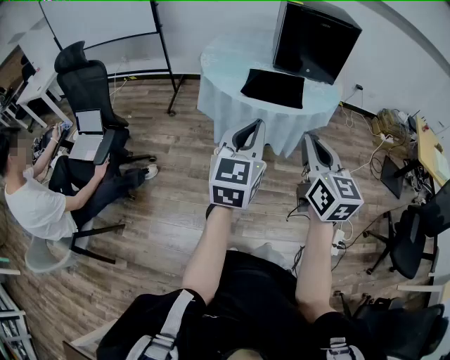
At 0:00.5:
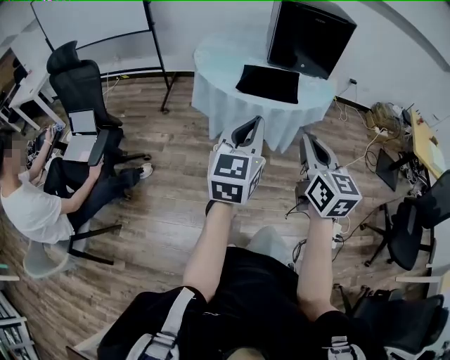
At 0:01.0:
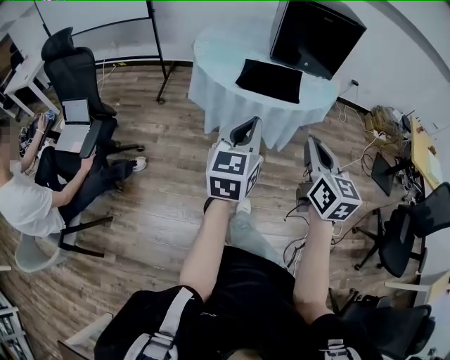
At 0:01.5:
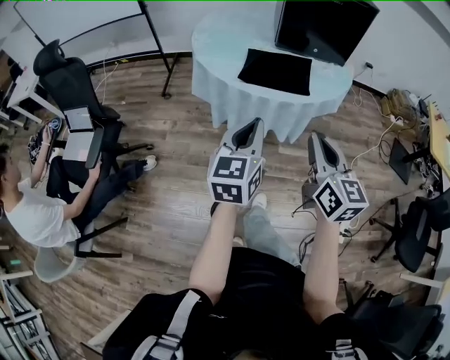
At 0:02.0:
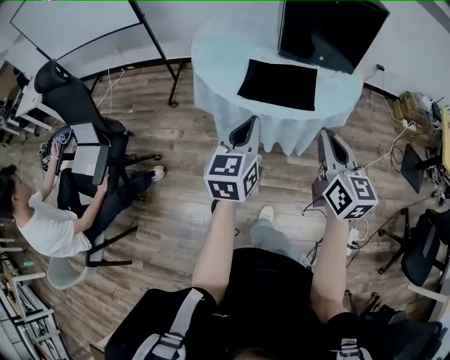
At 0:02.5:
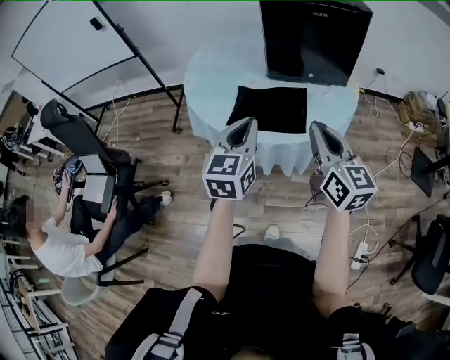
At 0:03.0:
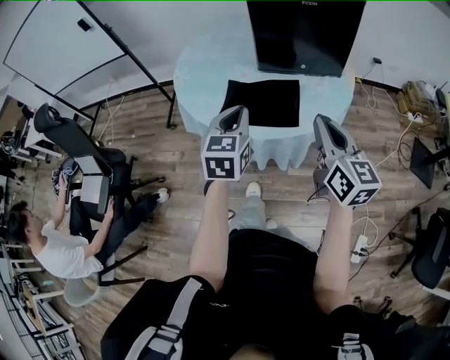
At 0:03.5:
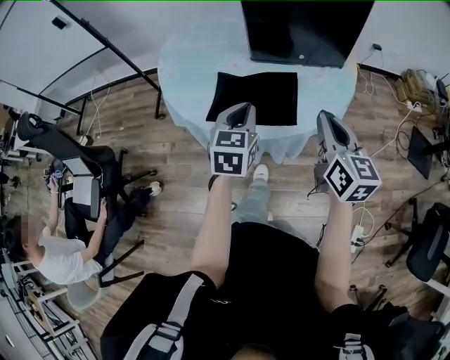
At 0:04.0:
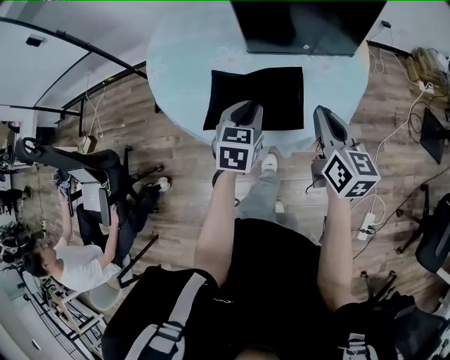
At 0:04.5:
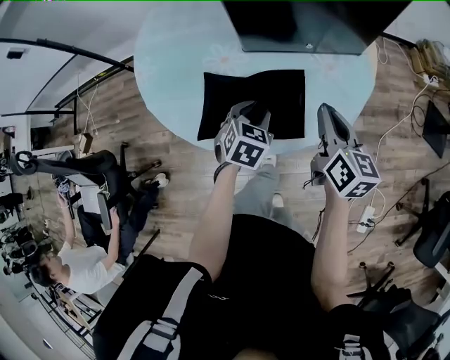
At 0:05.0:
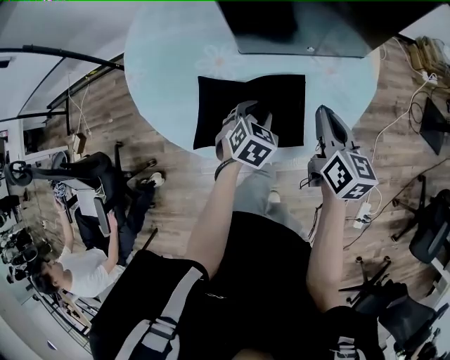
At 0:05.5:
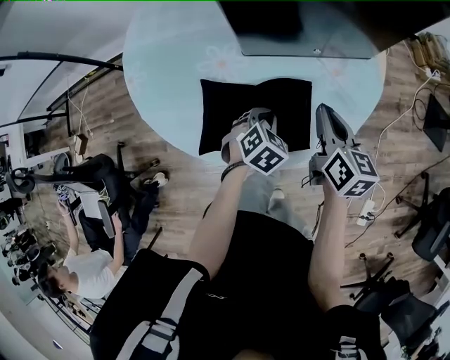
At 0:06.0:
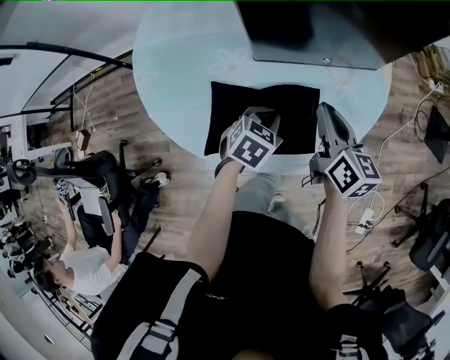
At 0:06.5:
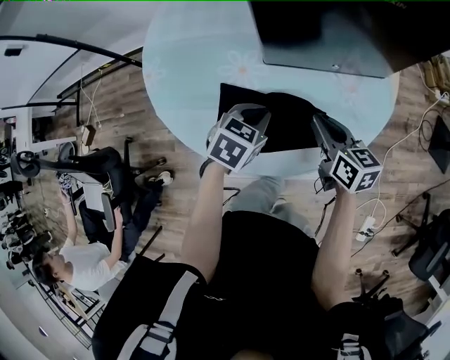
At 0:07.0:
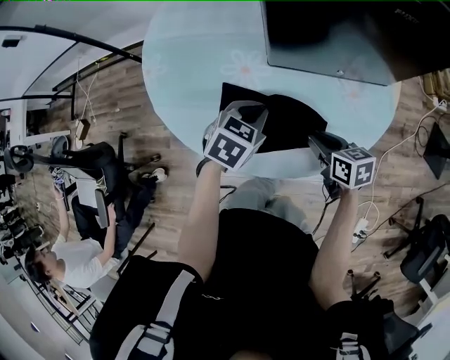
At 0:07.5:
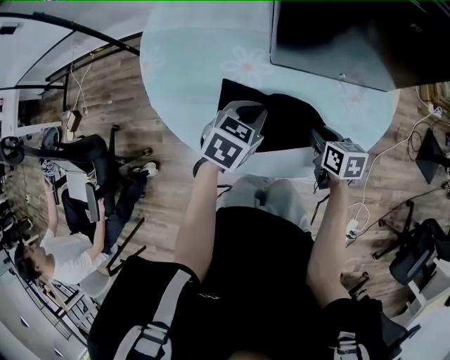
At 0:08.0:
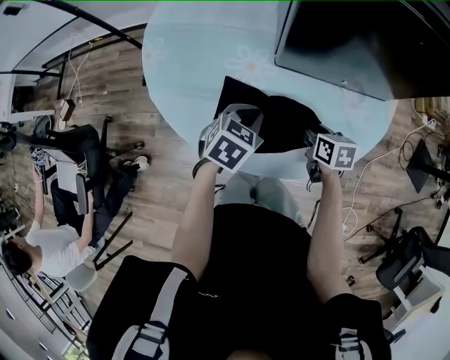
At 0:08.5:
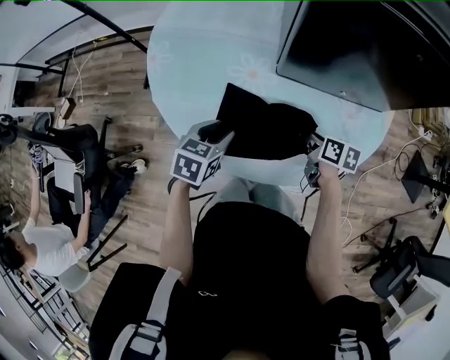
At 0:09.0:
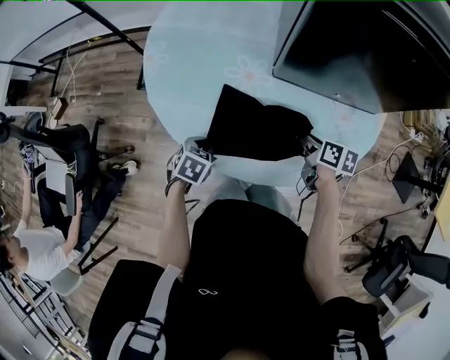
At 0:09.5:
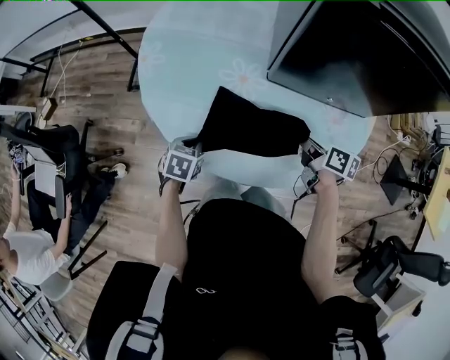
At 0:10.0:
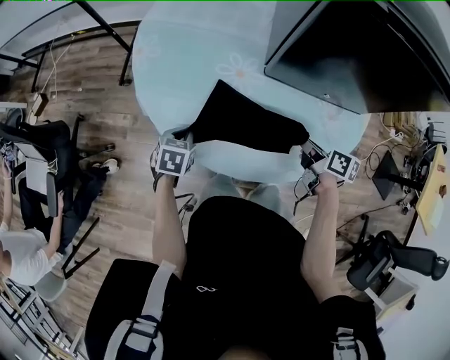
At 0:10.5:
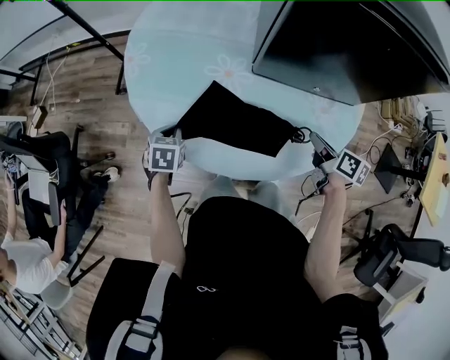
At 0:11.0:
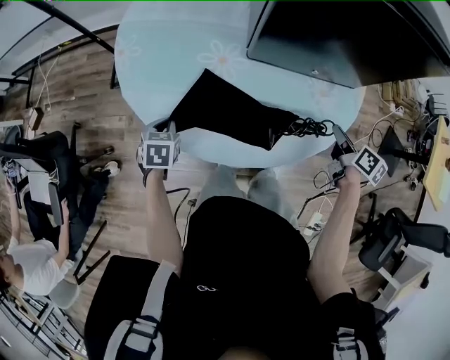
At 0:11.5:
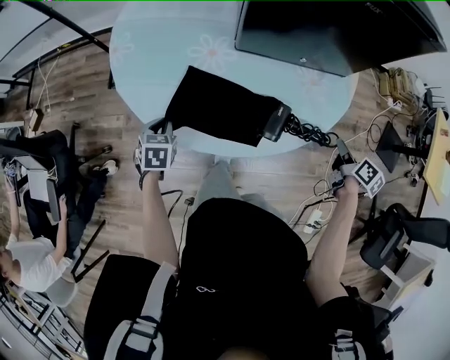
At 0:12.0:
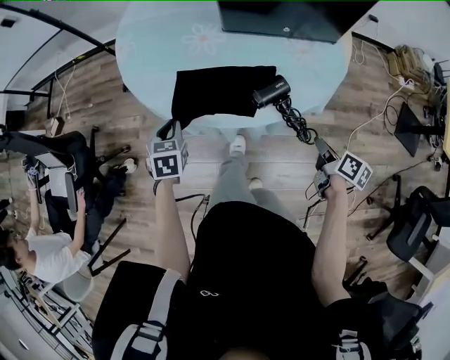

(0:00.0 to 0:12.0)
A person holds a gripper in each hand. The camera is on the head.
0:00.0 - 0:02.0: The right gripper is displaced forward by some 20 cm, while the left gripper is displaced forward and downward by roughly 25 cm.
0:02.0 - 0:04.0: The left gripper heads forward, downward and to the right, covering roughly 30 cm, and turns by about 30 degrees. Meanwhile the right gripper is displaced forward and downward by some 25 cm.
0:04.0 - 0:06.0: The left gripper travels downward and forward by roughly 10 cm, and rotates about 30 degrees; the right gripper shifts some 10 cm forward and downward.
0:06.0 - 0:08.0: The left gripper travels to the left by roughly 10 cm. The right gripper goes approximately 15 cm downward, tips its fingers downward by approximately 30 degrees, and opens.
0:08.0 - 0:10.0: The right gripper is displaced upward by about 5 cm, rotates about 20 degrees, and closes; the left gripper shifts about 20 cm to the left and downward, rotates some 20 degrees, and opens and closes again.
0:10.0 - 0:12.0: The left gripper heads backward and upward, covering approximately 15 cm; the right gripper is displaced backward and to the right by approximately 25 cm, and rotates approximately 20 degrees.

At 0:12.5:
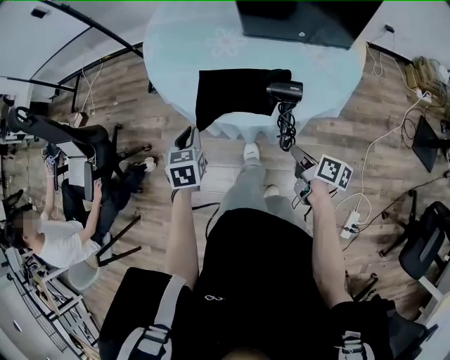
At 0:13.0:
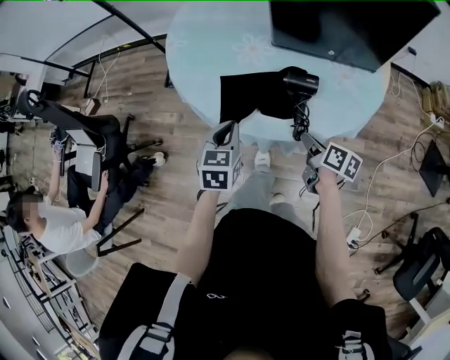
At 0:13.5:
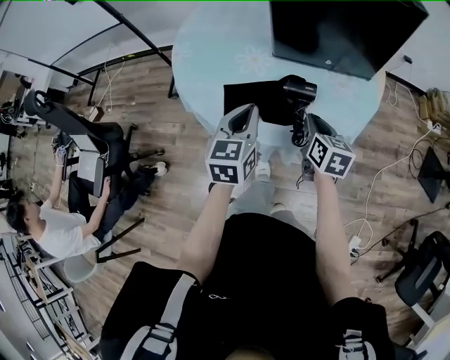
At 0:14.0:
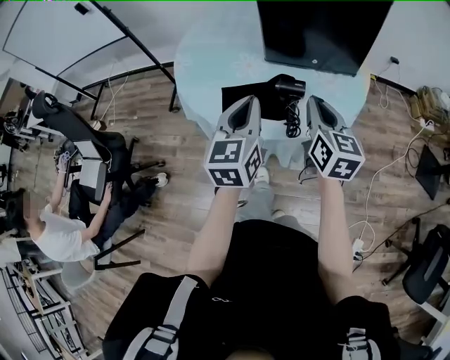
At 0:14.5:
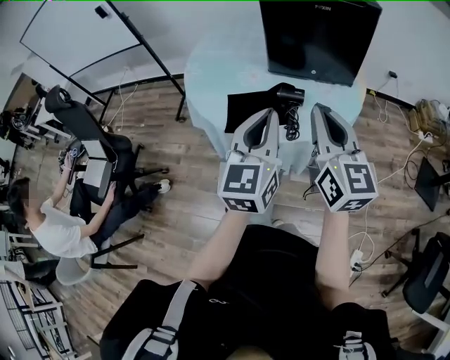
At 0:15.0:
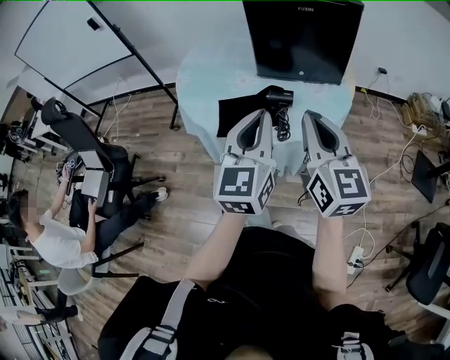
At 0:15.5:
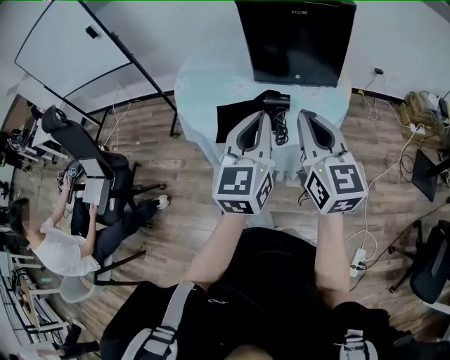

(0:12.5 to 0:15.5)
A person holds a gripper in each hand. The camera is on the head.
0:12.5 - 0:14.0: The right gripper goes about 25 cm upward and forward, and rotates around the line of its fingers by roughly 50 degrees, counterclockwise from behind. Meanwhile the left gripper is displaced upward and to the right by some 25 cm, and angles its fingers upward, by roughly 40 degrees.
0:14.0 - 0:15.5: The right gripper shifts roughly 15 cm backward and upward; the left gripper shifts approximately 15 cm backward, upward and to the right.

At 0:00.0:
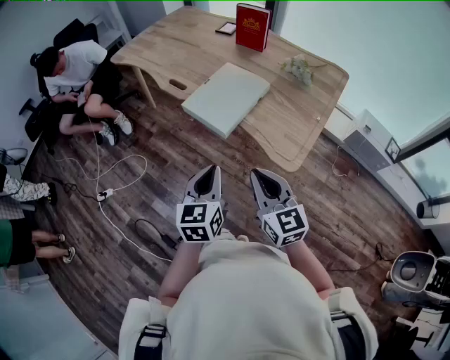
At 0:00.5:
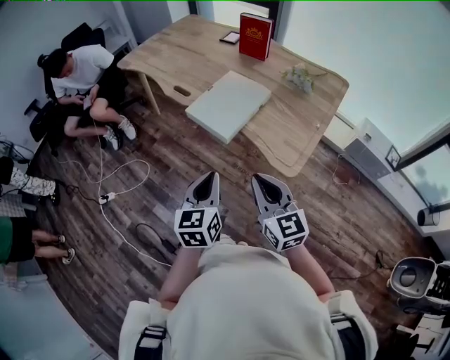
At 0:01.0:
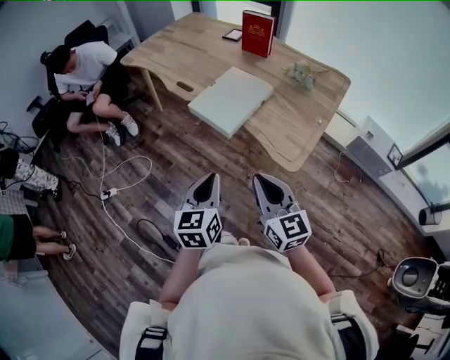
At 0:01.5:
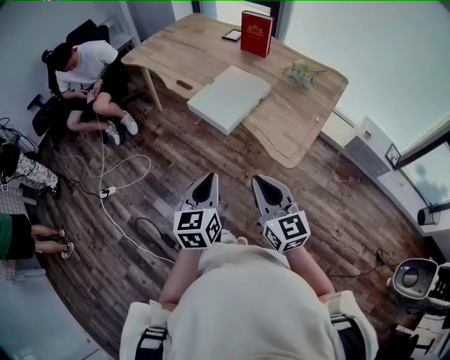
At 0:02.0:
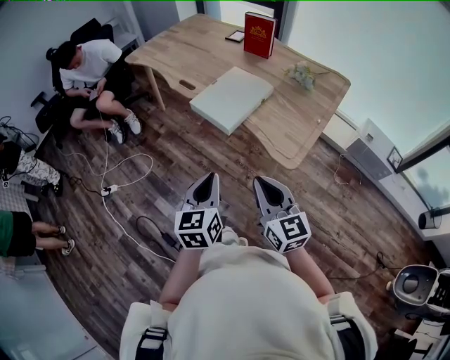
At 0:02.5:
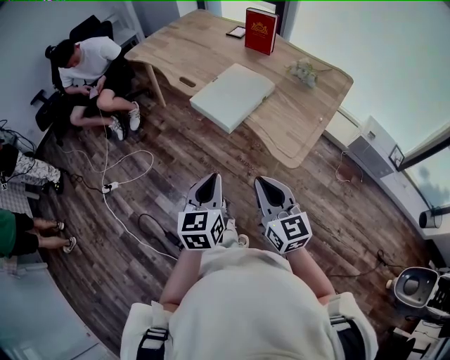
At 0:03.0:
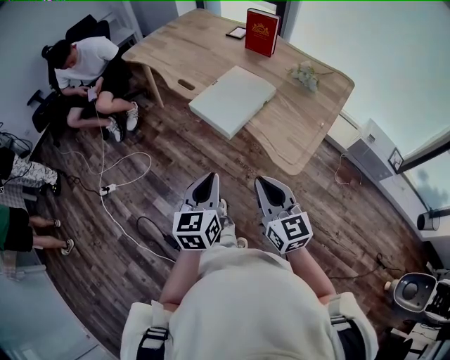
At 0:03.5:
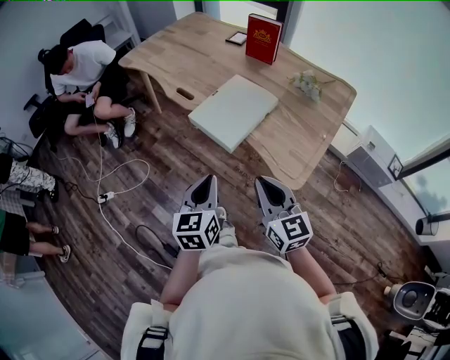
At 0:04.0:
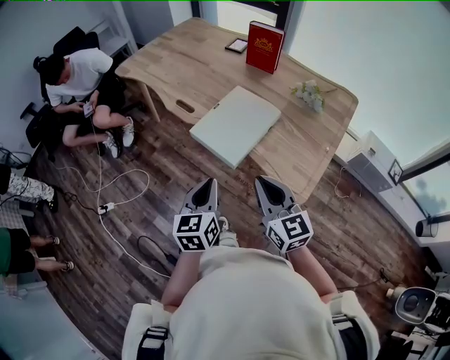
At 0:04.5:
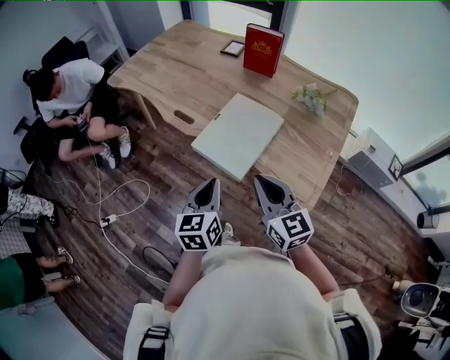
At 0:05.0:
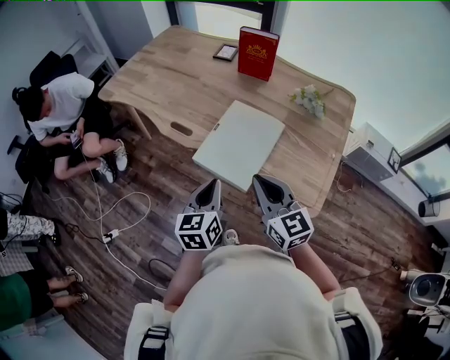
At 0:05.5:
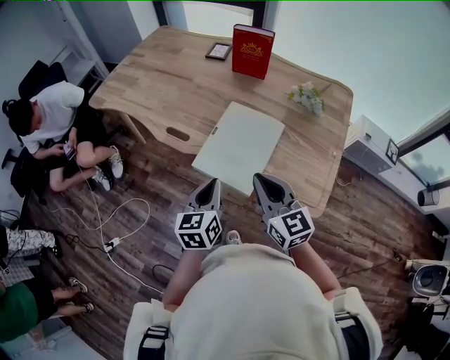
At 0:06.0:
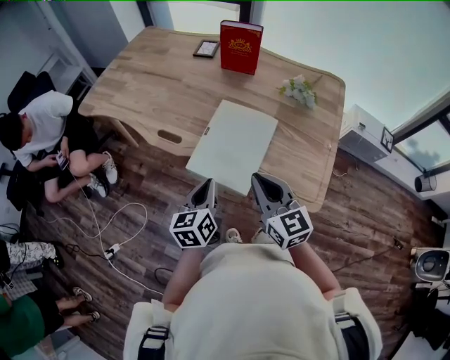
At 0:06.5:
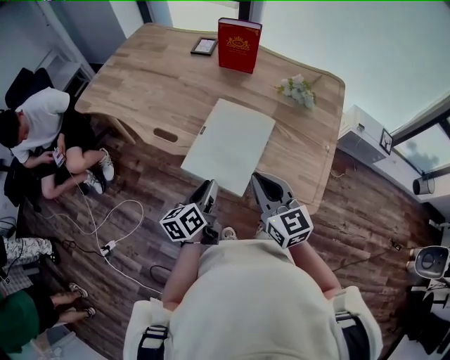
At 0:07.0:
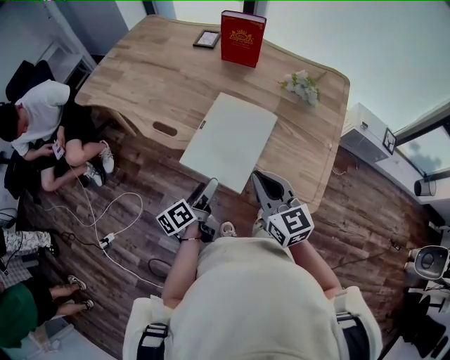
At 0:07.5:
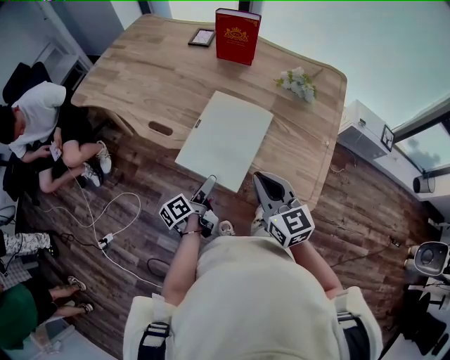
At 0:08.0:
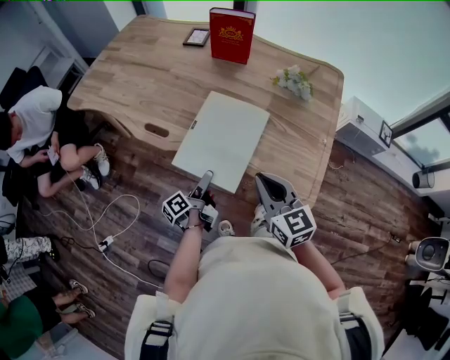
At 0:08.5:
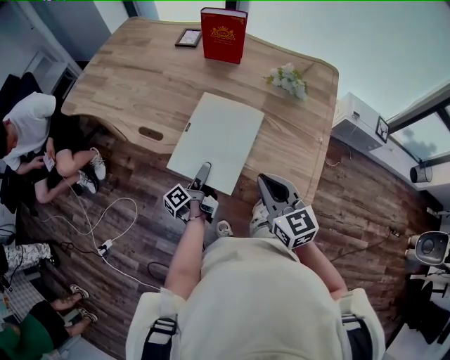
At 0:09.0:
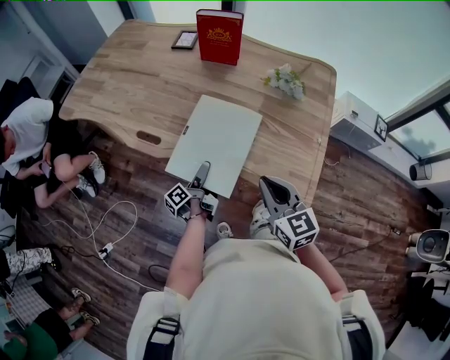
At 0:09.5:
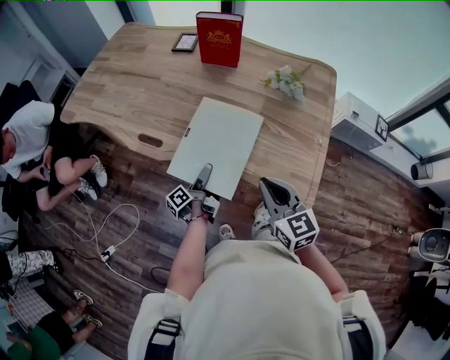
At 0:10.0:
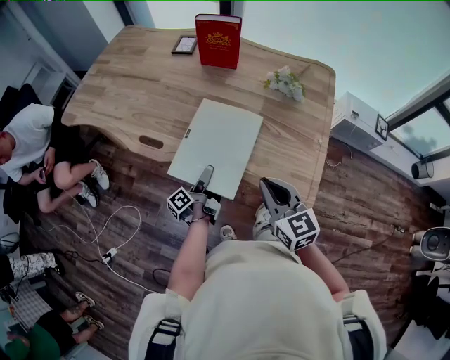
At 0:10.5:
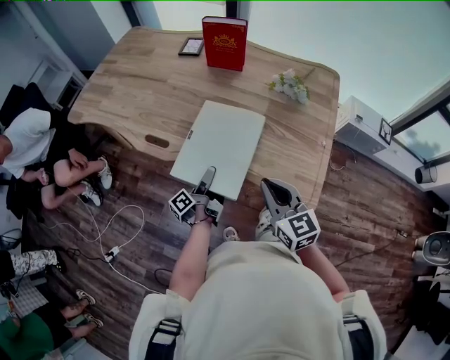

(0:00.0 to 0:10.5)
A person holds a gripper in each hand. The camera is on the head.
0:00.0 - 0:02.0: The grippers both shift backward by approximately 5 cm.
0:02.0 - 0:04.0: Both grippers travel together forward, about 15 cm.
0:04.0 - 0:06.5: The right gripper moves forward, about 15 cm. Meanwhile the left gripper travels forward and downward by roughly 20 cm, and changes its angle by about 30 degrees.
0:06.5 - 0:08.5: The left gripper travels downward and forward by some 15 cm, rolls counterclockwise, seen from behind, by some 40 degrees, and opens up. The right gripper shifts about 5 cm to the right.
0:08.5 - 0:10.5: There are only small adjustments of the grippers.

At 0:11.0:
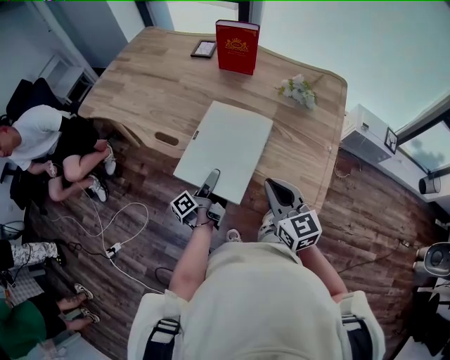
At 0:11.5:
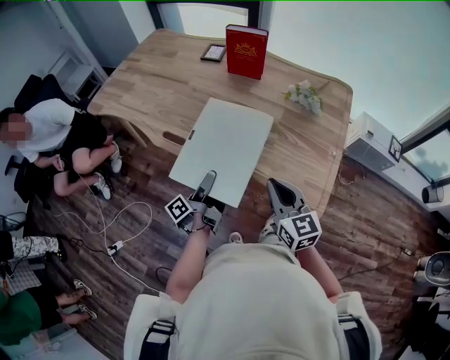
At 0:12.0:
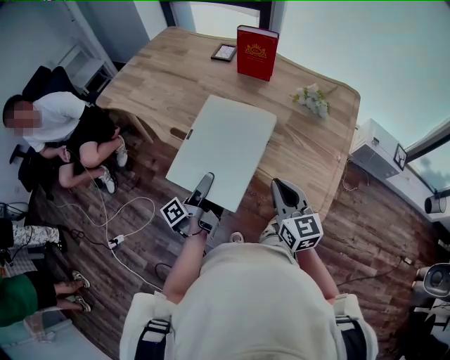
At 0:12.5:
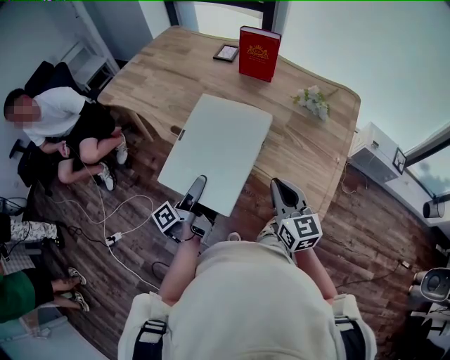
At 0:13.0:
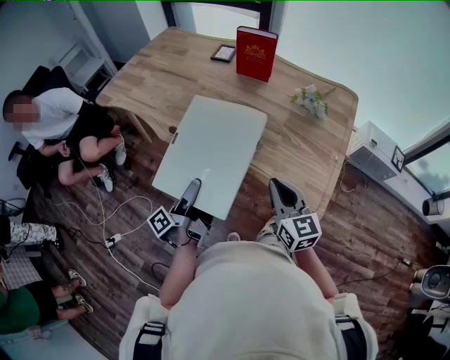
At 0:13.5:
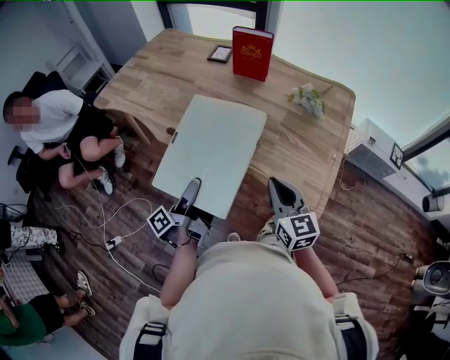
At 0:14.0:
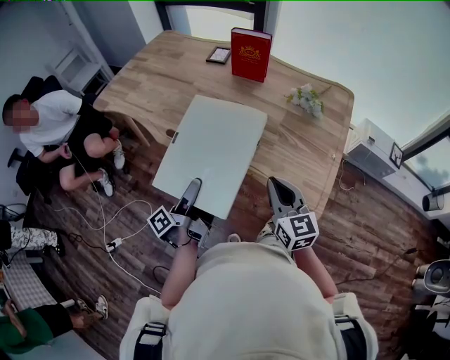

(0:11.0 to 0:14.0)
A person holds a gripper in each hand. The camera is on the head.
0:11.0 - 0:12.5: The left gripper travels upward, backward and to the left by approximately 15 cm.
0:12.5 - 0:14.0: There are only small adjustments of the grippers.
